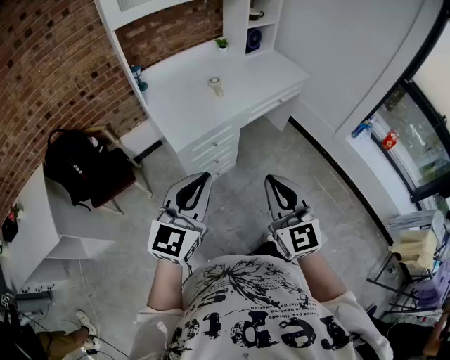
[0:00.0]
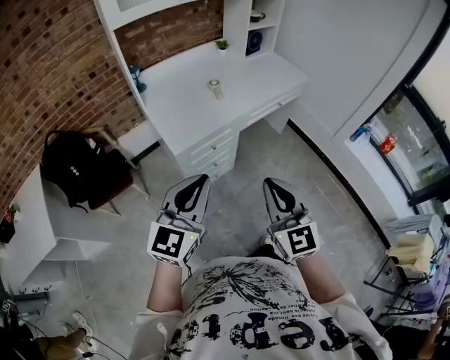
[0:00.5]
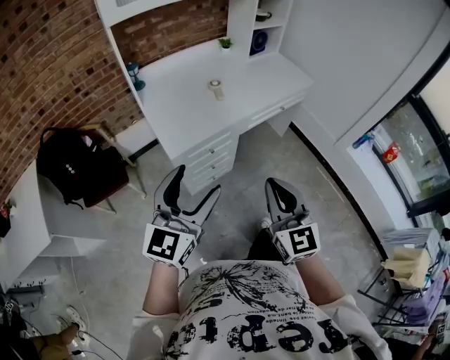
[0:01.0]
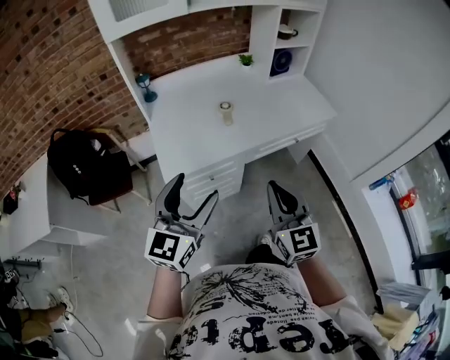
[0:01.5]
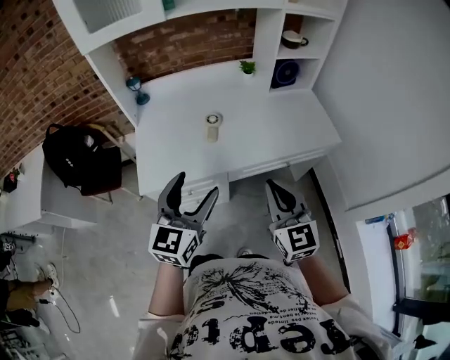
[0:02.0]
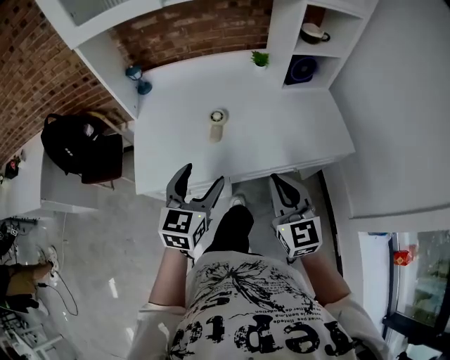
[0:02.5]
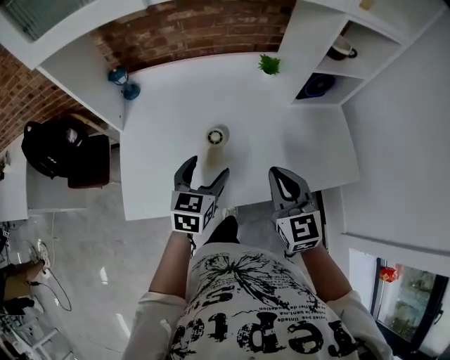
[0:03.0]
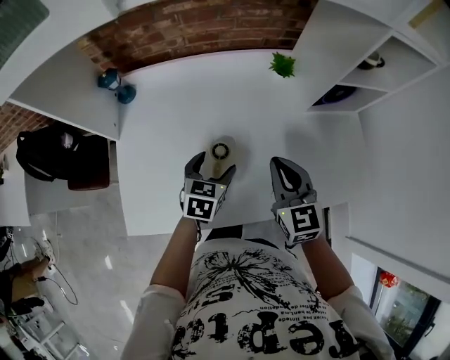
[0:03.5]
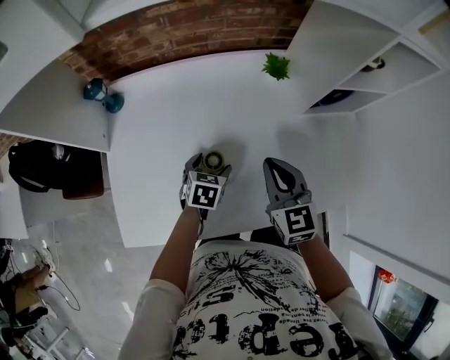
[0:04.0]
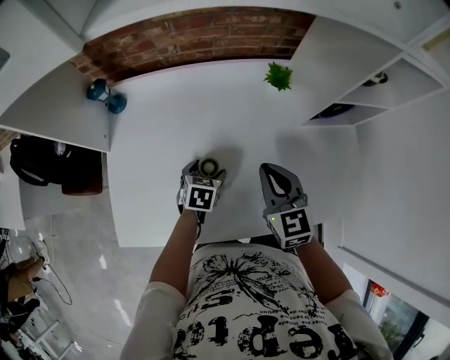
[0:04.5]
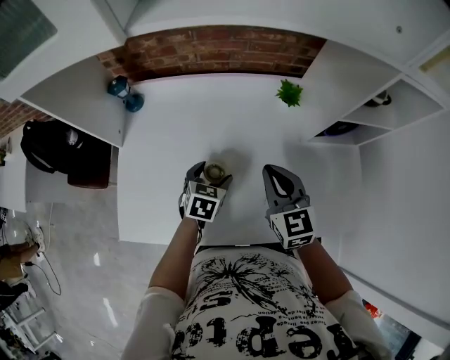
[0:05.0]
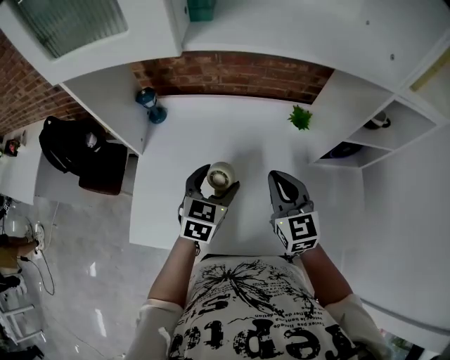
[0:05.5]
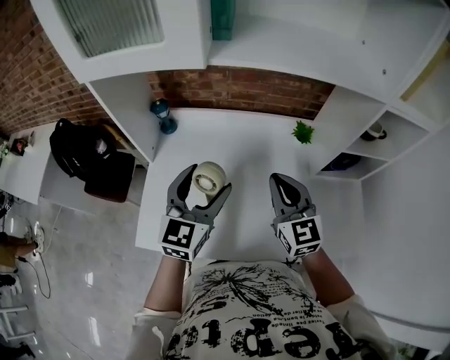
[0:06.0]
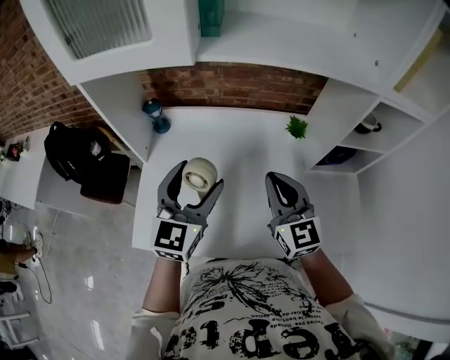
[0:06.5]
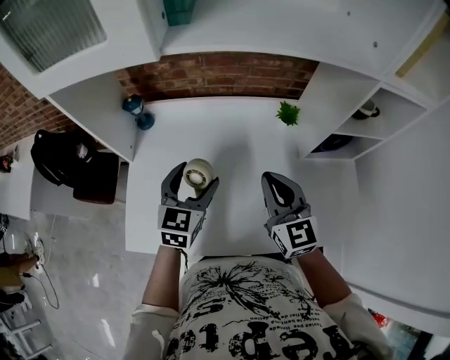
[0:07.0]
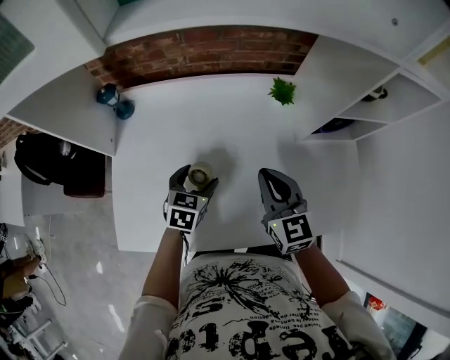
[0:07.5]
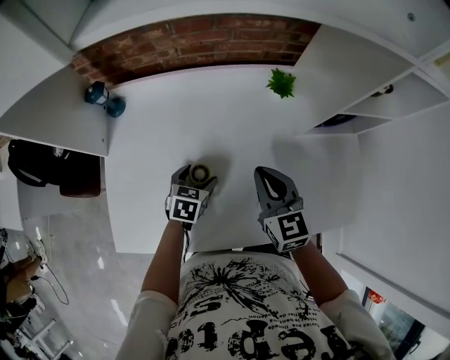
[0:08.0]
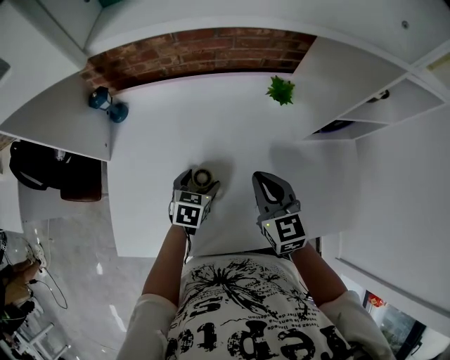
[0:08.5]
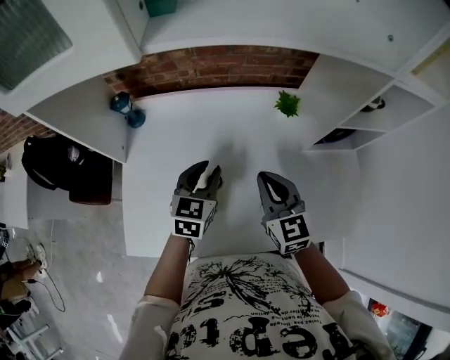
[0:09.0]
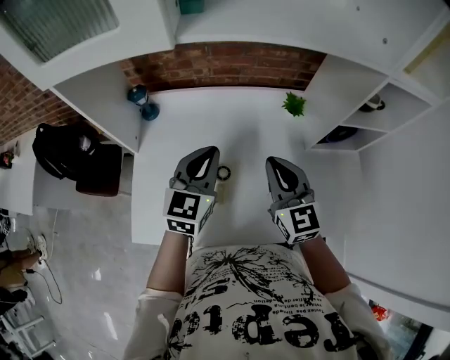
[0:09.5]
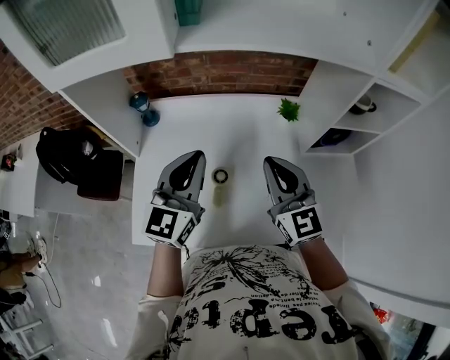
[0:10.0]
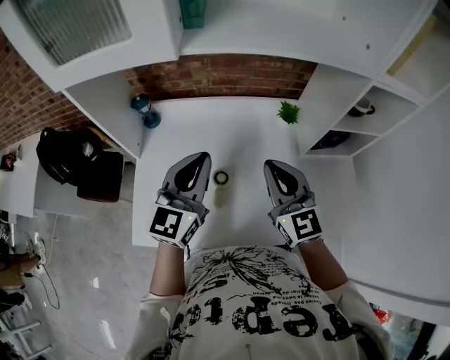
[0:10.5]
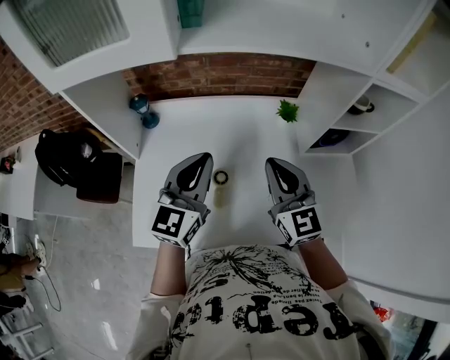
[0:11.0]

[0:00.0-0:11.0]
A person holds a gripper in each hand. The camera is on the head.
0:00.0 to 0:02.0: Both grippers are carried forward and to the right, roughly 50 cm. The right gripper swivels approximately 20 degrees; the left gripper swivels approximately 30 degrees, and opens.
0:02.0 to 0:03.5: The pair of grippers is taken forward, approximately 40 cm. The left gripper heads downward, covering about 25 cm, and points its fingers about 30 degrees further downward.
0:03.5 to 0:05.5: The left gripper is displaced upward by roughly 10 cm; the right gripper shifts about 10 cm upward and forward.
0:05.5 to 0:07.5: The left gripper moves downward, about 15 cm. Meanwhile the right gripper goes approximately 5 cm downward.
0:07.5 to 0:09.0: The left gripper shifts some 10 cm upward, and closes its fingers.
0:09.0 to 0:11.0: The right gripper moves upward, roughly 10 cm. Meanwhile the left gripper travels upward by about 15 cm, and turns by about 30 degrees.

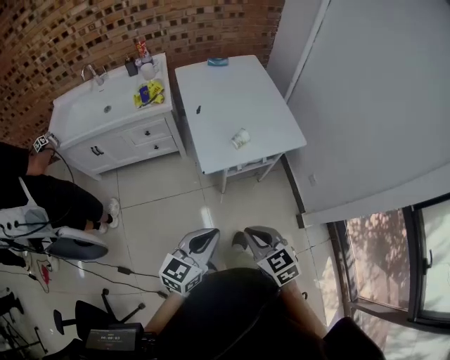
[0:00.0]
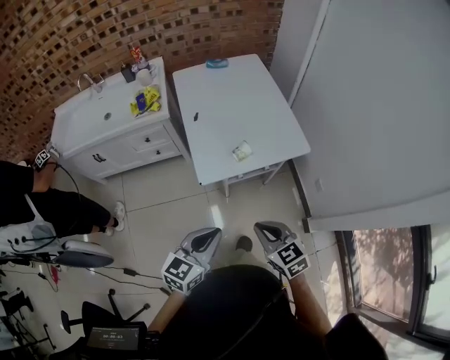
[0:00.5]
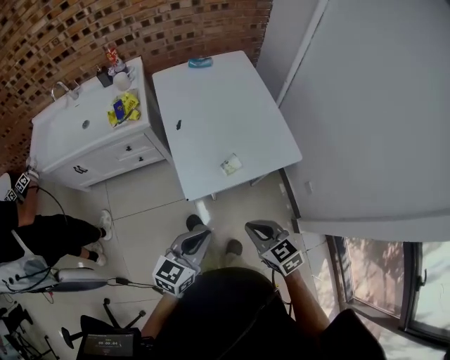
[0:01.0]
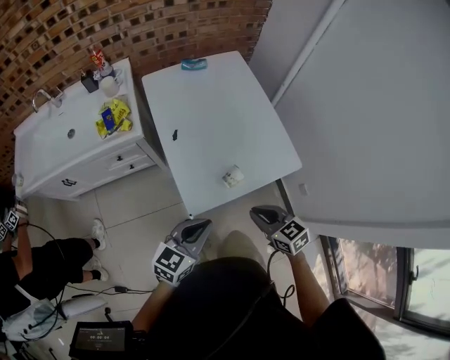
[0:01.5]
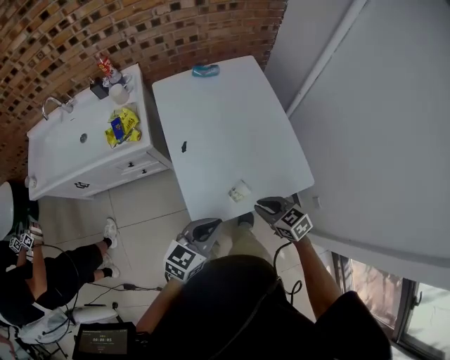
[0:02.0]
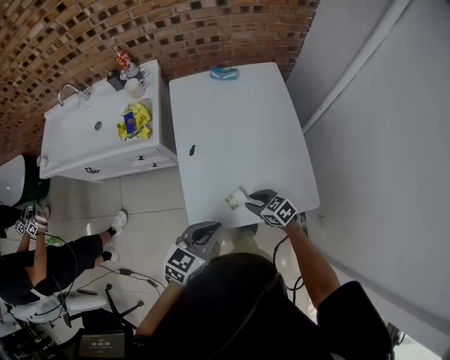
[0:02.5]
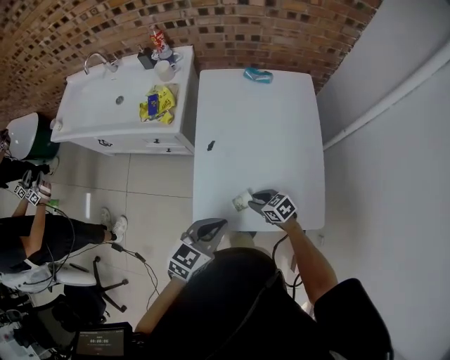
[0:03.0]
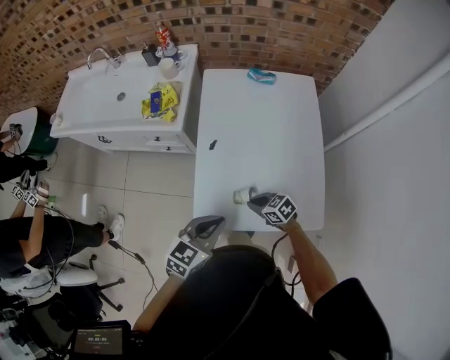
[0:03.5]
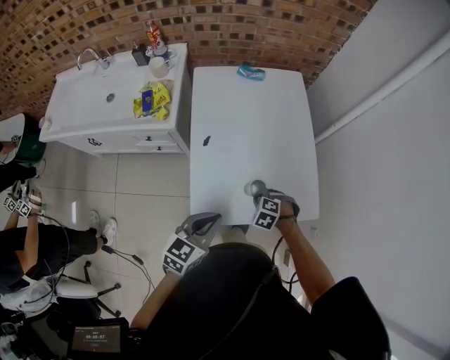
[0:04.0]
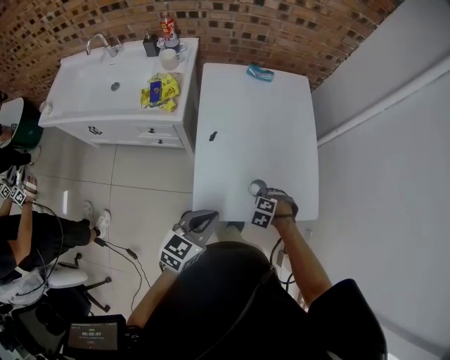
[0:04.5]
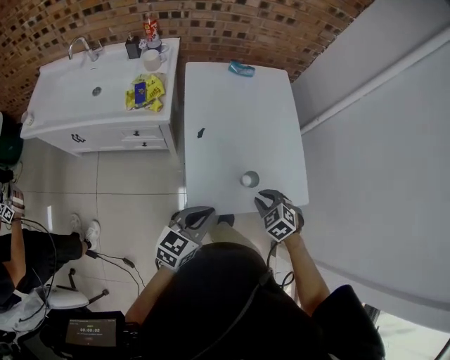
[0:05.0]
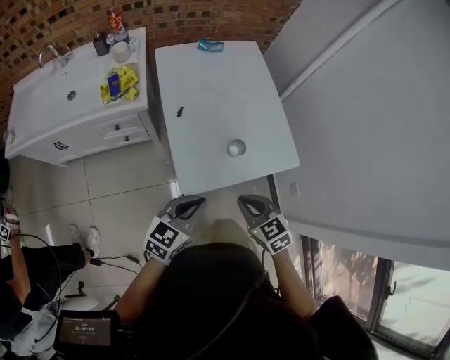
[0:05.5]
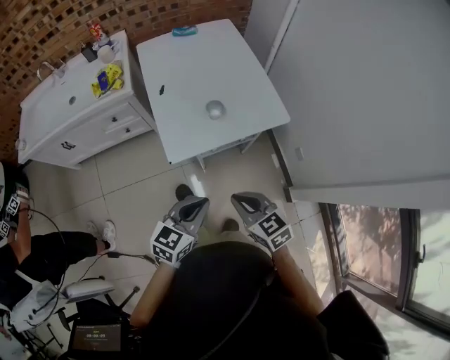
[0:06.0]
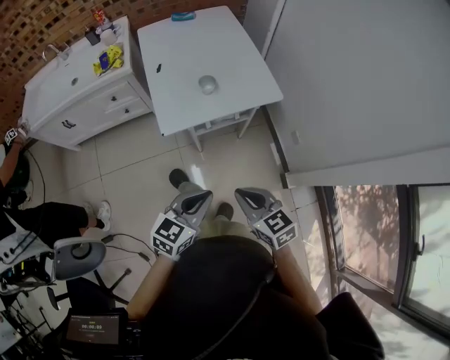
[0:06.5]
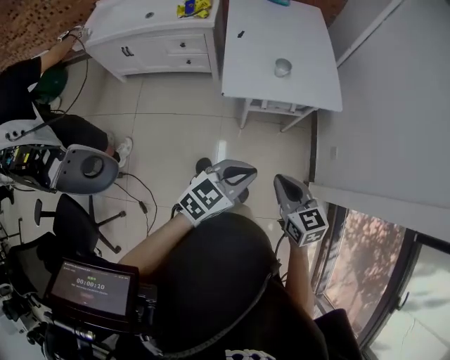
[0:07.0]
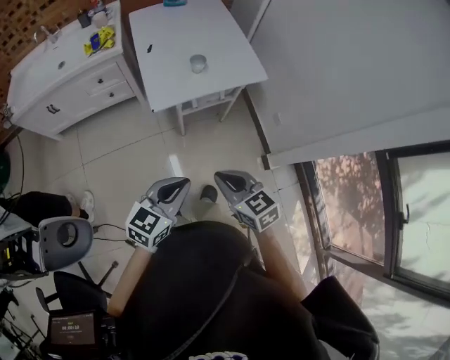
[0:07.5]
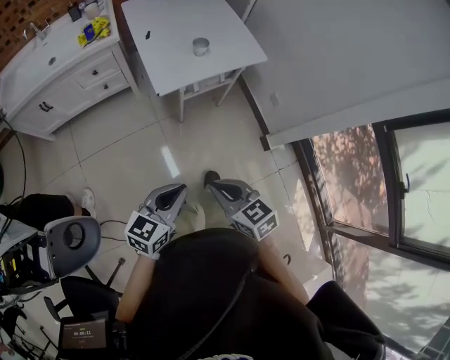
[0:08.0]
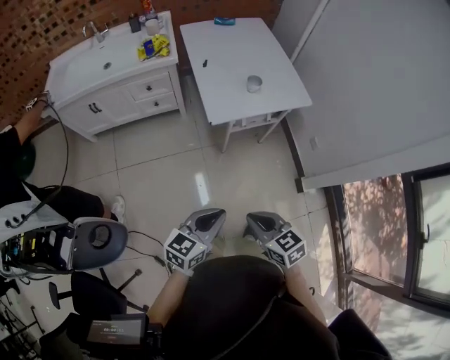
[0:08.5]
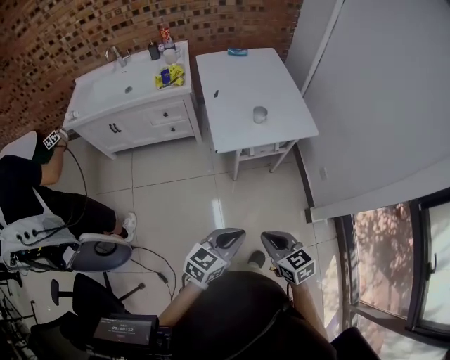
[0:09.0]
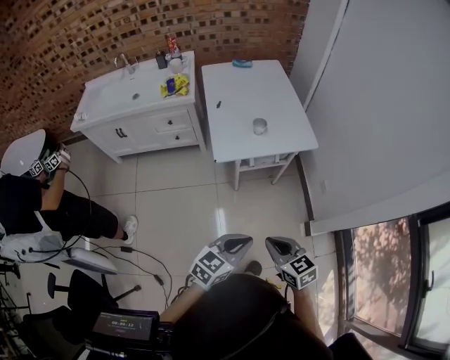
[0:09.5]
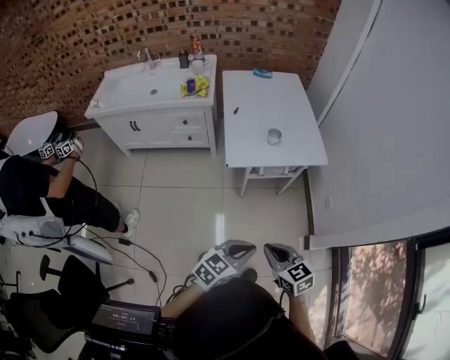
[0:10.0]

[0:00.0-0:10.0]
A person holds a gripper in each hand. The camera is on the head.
0:00.0 to 0:02.0: The two grippers go approximately 35 cm forward.
0:02.0 to 0:04.0: The right gripper goes some 10 cm downward, and tilts its fingers about 40 degrees downward.
0:04.0 to 0:06.0: The right gripper moves some 35 cm, and points its fingers approximately 40 degrees further upward, while the left gripper changes place by about 25 cm.
0:06.0 to 0:08.0: The two grippers go about 25 cm backward.
0:08.0 to 0:10.0: The two grippers go some 10 cm to the right.

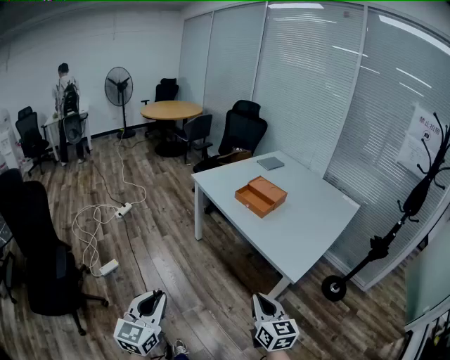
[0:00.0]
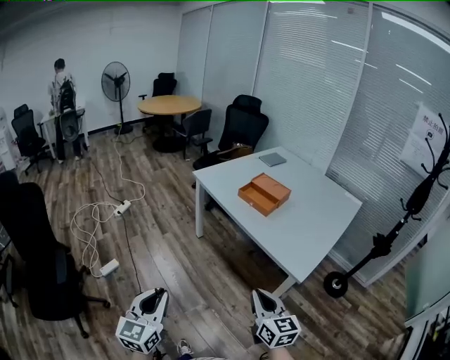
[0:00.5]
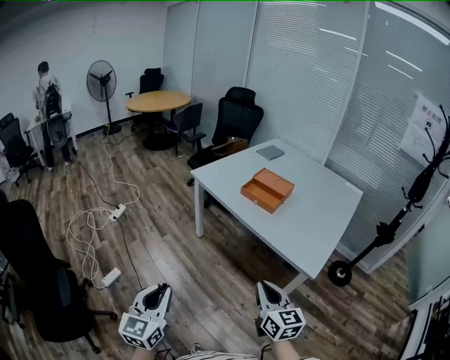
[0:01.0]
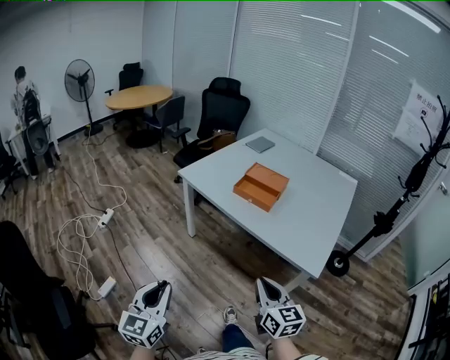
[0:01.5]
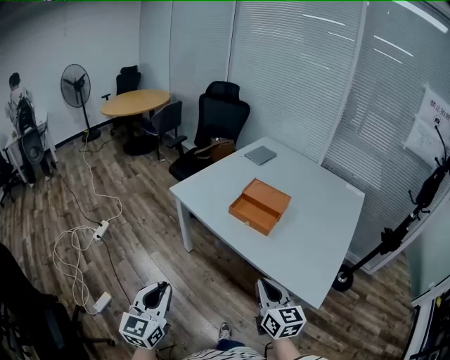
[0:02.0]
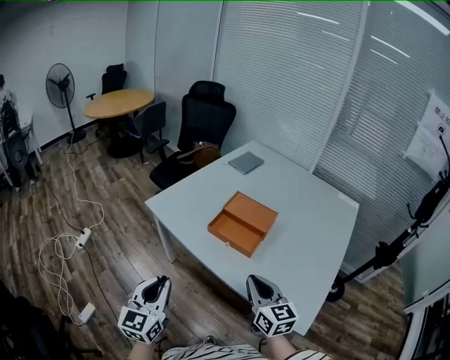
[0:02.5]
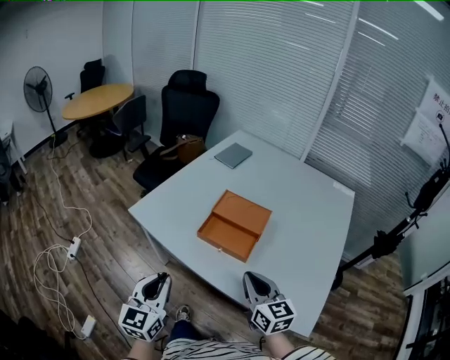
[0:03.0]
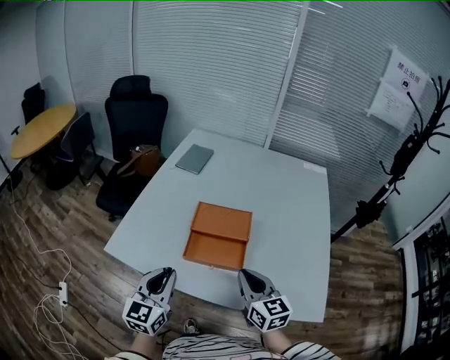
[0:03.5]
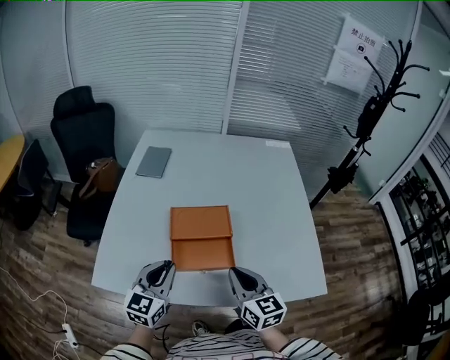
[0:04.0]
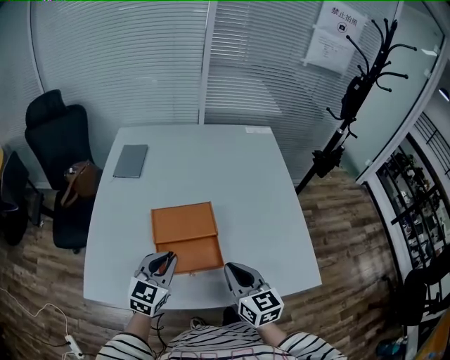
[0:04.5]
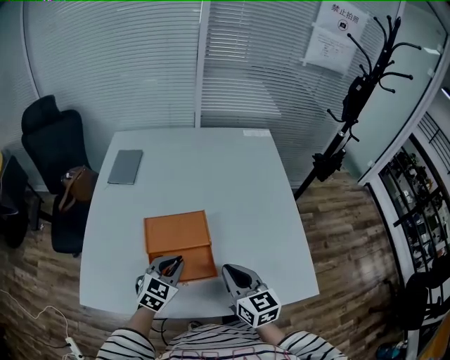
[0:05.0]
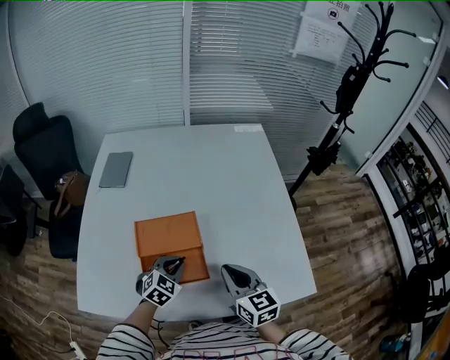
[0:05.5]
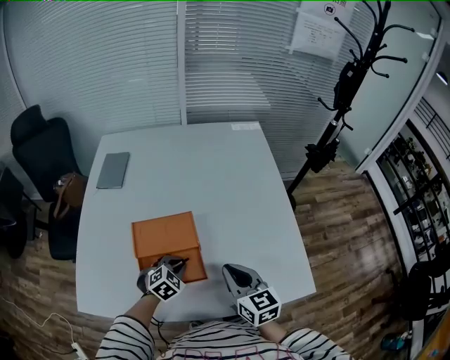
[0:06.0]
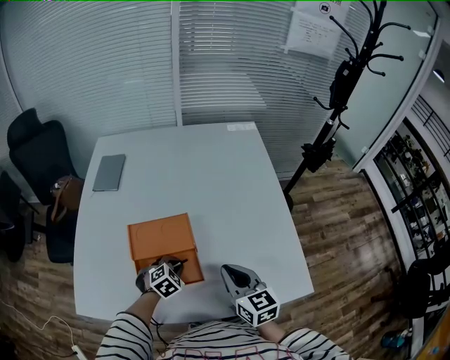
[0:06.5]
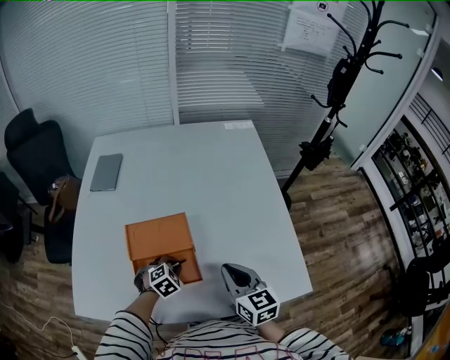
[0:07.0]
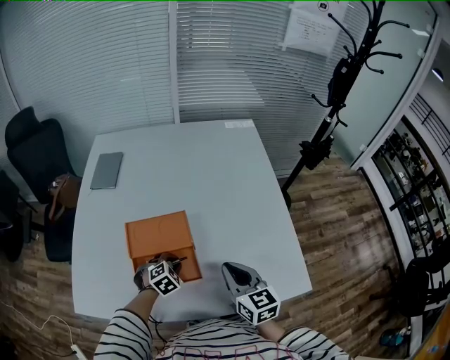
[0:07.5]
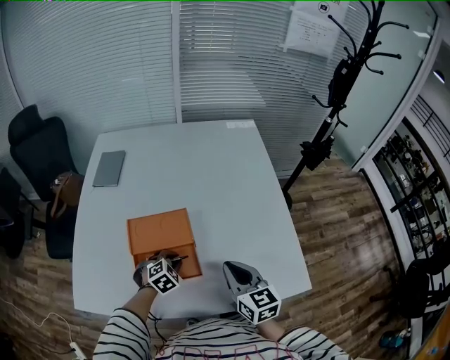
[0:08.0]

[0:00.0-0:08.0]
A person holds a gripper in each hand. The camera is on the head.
0:00.0 to 0:02.0: Both grippers travel together forward, some 30 cm.
0:02.0 to 0:04.0: The left gripper shifts by about 50 cm, and changes its angle by some 50 degrees; the right gripper shifts by approximately 30 cm, and swivels approximately 30 degrees.
0:04.0 to 0:06.0: The right gripper shifts about 10 cm to the right and forward, while the left gripper shifts approximately 25 cm downward, to the right and forward, and tilts its fingers some 40 degrees downward.
0:06.0 to 0:08.0: There are only small adjustments of the grippers.
